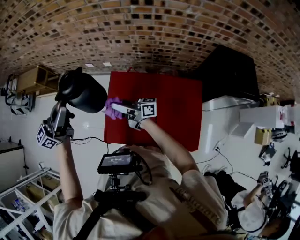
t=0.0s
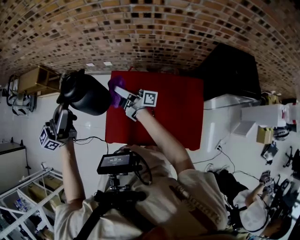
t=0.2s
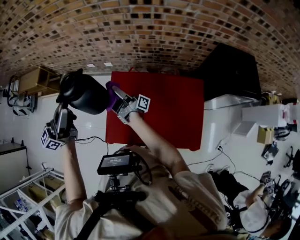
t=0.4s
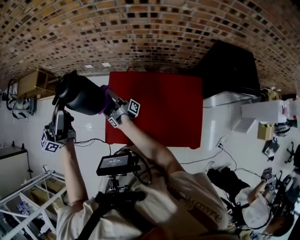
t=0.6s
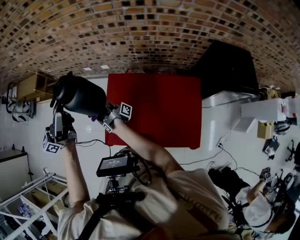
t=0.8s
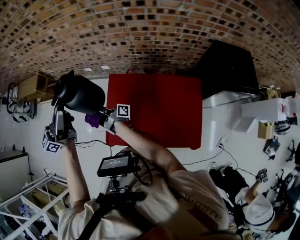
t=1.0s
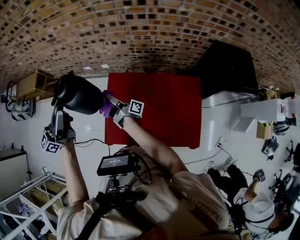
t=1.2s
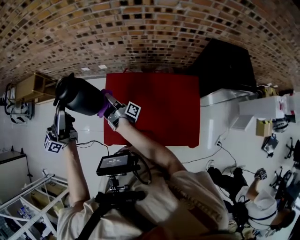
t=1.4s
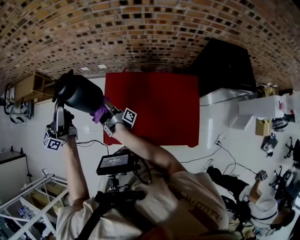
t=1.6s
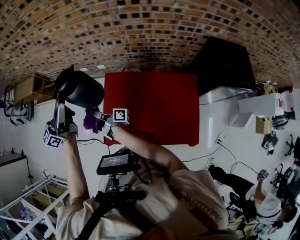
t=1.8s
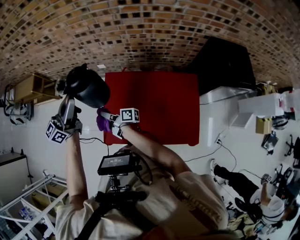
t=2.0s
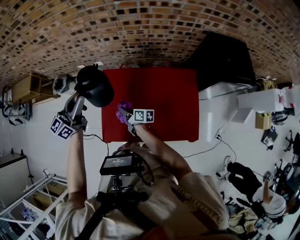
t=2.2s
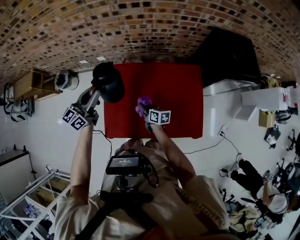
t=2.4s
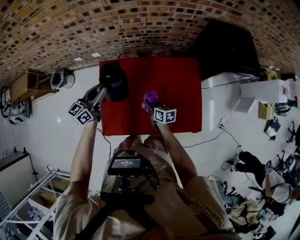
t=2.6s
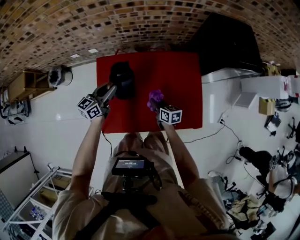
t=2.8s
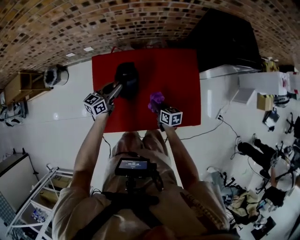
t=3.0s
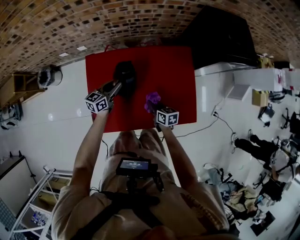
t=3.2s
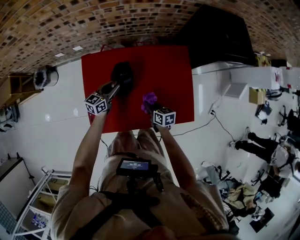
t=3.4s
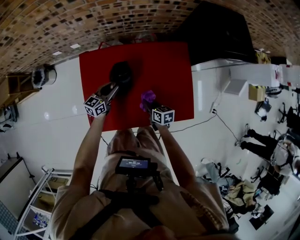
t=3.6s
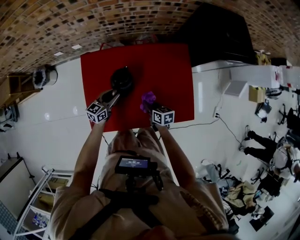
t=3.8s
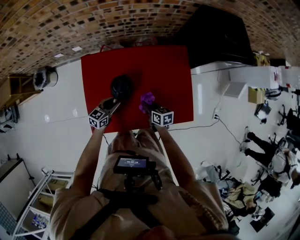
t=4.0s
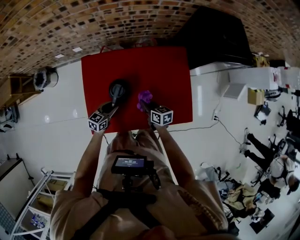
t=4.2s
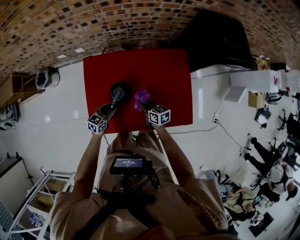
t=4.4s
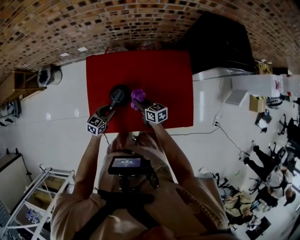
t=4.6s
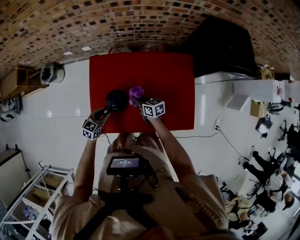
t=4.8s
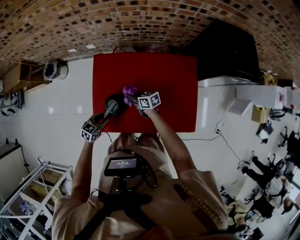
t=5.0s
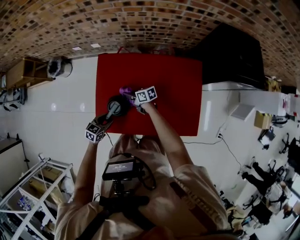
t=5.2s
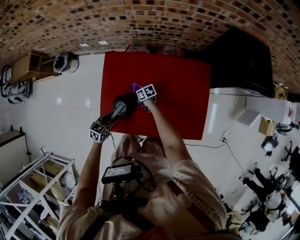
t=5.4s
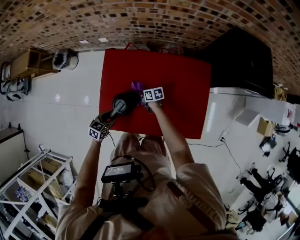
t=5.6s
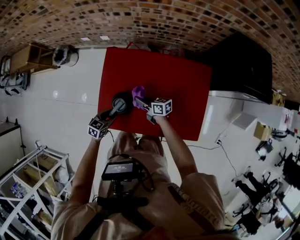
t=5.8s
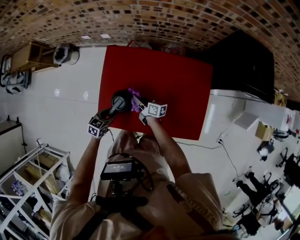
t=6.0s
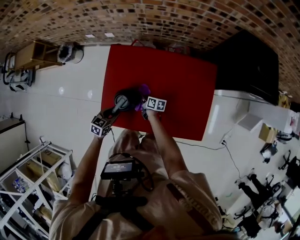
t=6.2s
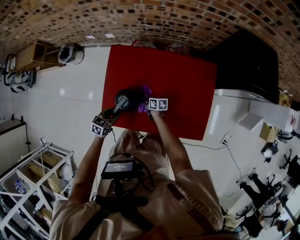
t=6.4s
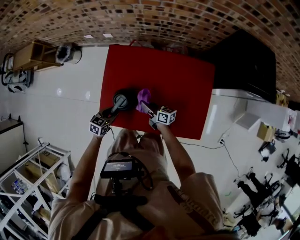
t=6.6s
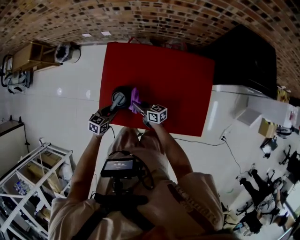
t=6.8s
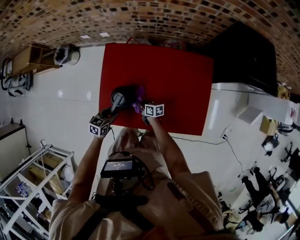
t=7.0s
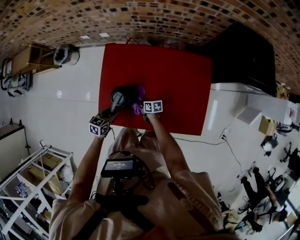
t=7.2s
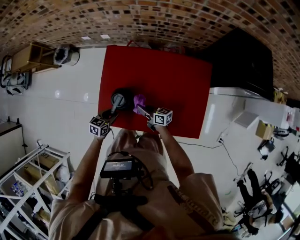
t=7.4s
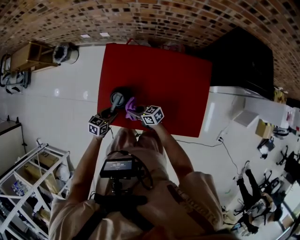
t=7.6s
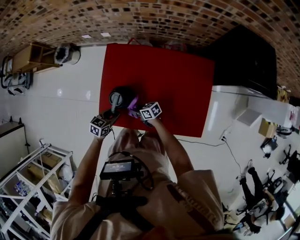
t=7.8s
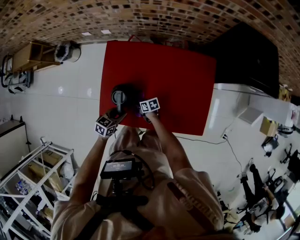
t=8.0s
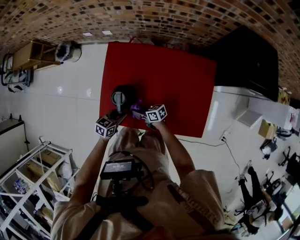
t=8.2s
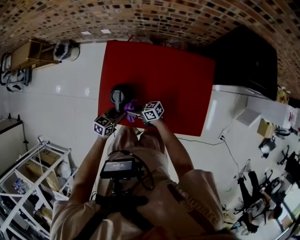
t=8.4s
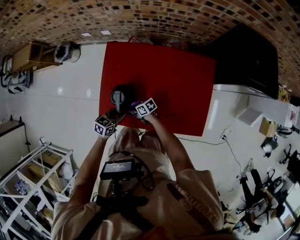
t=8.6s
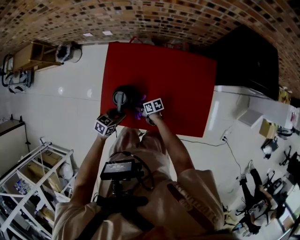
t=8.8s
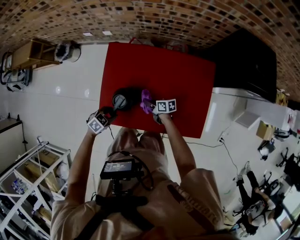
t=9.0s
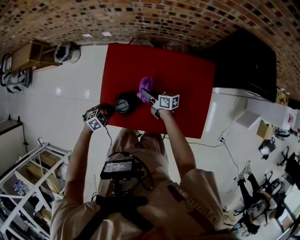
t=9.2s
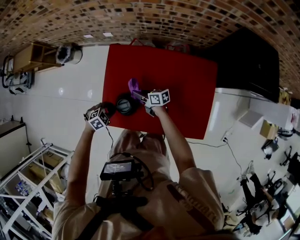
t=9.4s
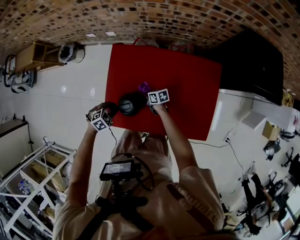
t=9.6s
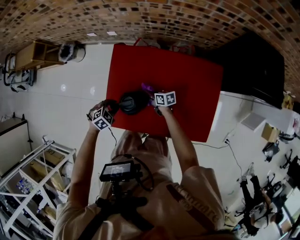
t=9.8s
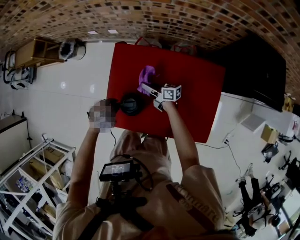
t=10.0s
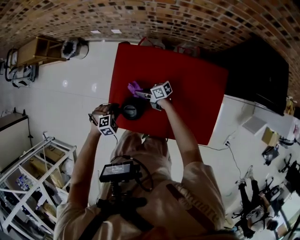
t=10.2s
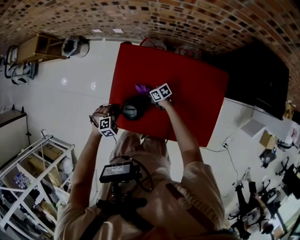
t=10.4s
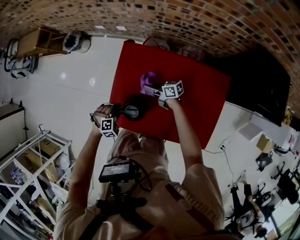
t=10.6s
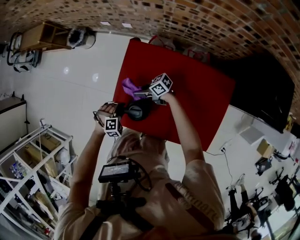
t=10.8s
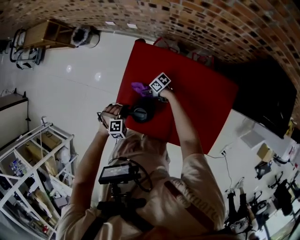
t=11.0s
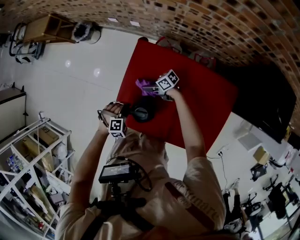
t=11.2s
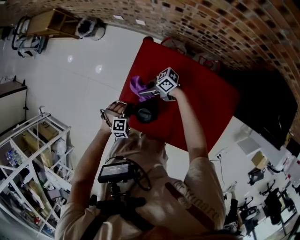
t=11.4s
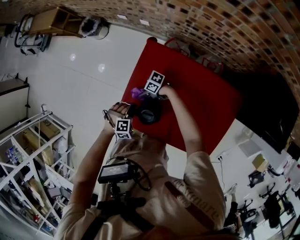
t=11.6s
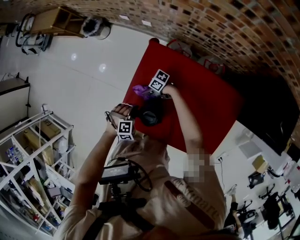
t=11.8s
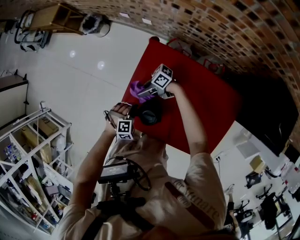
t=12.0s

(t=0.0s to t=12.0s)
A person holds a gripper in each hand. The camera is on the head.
t=0.0s - t=1.6s: The right gripper moves downward, about 5 cm, reaches about 10 cm to the left, then returns, and changes its angle by about 60 degrees.
t=1.6s - t=3.0s: The right gripper moves to the right, downward and backward, roughly 35 cm, and points its fingers some 50 degrees further downward. The left gripper goes roughly 40 cm downward and to the right, and points its fingers some 30 degrees further downward.
t=3.0s - t=4.4s: The left gripper moves backward and downward, about 15 cm.
t=4.4s - t=6.0s: The right gripper changes its angle by some 30 degrees, while the left gripper ends up approximately 10 cm from where it was.
t=6.0s - t=7.6s: The right gripper swings up and down, roughly 15 cm each way, with 3 reversals, and swivels approximately 30 degrees.
t=7.6s - t=9.0s: The left gripper swivels approximately 40 degrees, while the right gripper goes up and down, roughly 15 cm each way, reversing 3 times, and turns by about 30 degrees.
t=9.0s - t=10.4s: The left gripper moves approximately 5 cm, and changes its angle by approximately 30 degrees. The right gripper swings up and down, roughly 15 cm each way, with 3 reversals, and rotates roughly 30 degrees.
t=10.4s - t=12.0s: The right gripper moves up and down over roughly 20 cm, changing direction 4 times, and angles its fingers upward, by about 30 degrees.

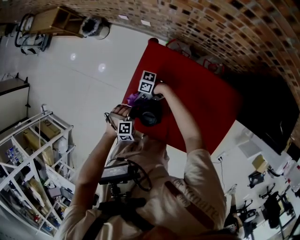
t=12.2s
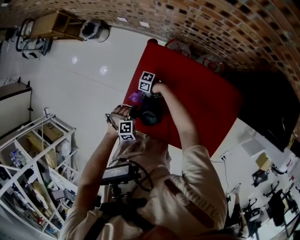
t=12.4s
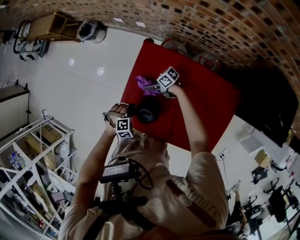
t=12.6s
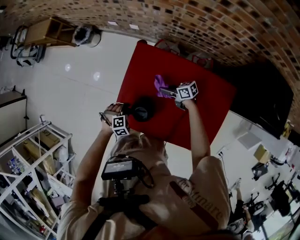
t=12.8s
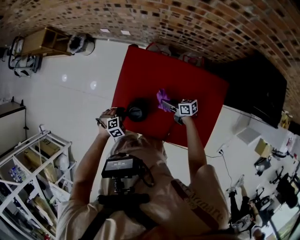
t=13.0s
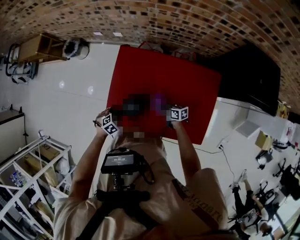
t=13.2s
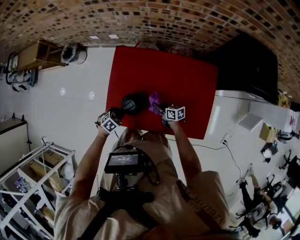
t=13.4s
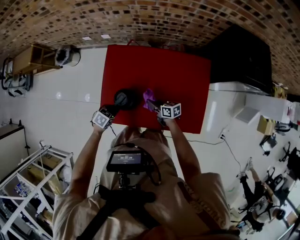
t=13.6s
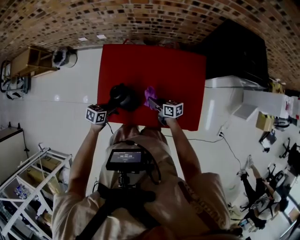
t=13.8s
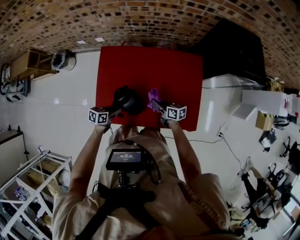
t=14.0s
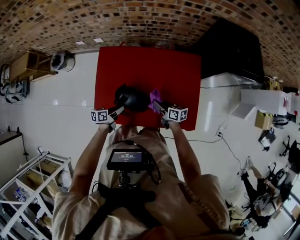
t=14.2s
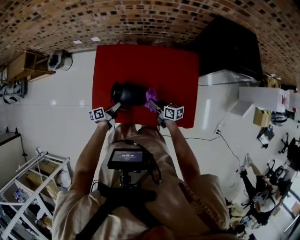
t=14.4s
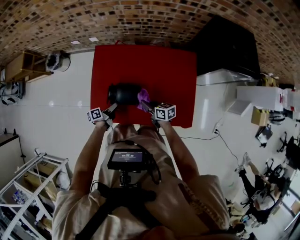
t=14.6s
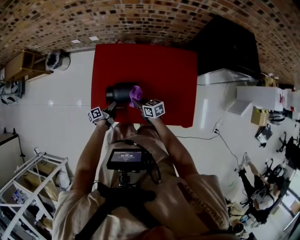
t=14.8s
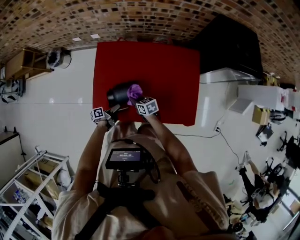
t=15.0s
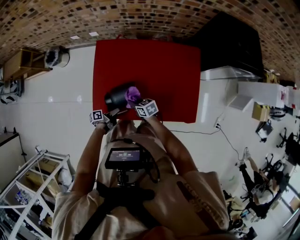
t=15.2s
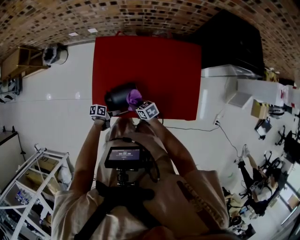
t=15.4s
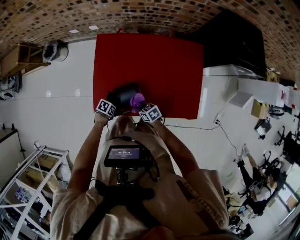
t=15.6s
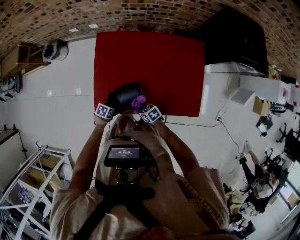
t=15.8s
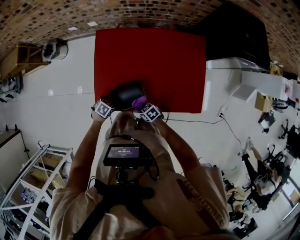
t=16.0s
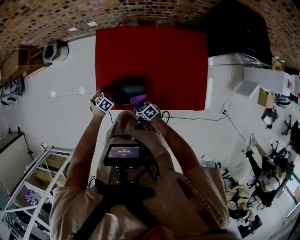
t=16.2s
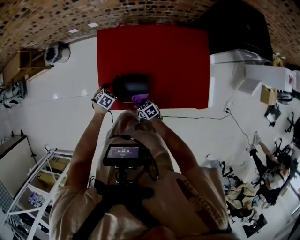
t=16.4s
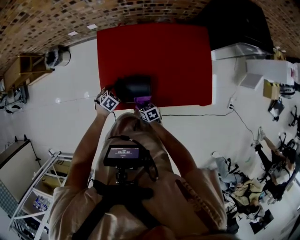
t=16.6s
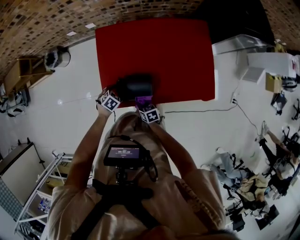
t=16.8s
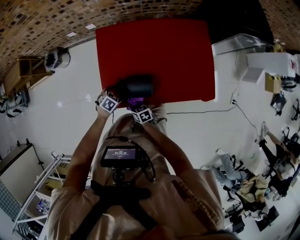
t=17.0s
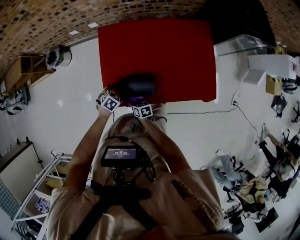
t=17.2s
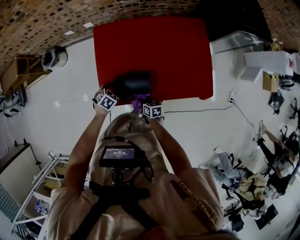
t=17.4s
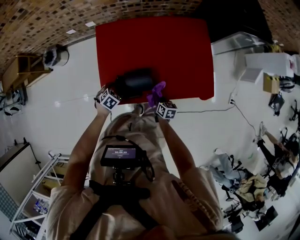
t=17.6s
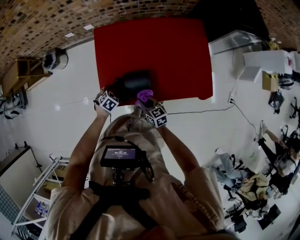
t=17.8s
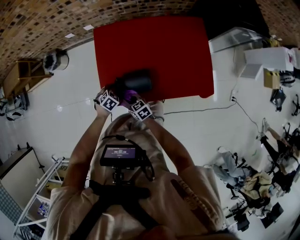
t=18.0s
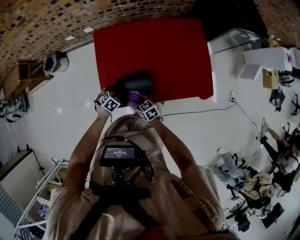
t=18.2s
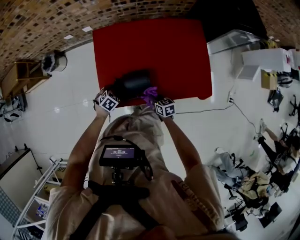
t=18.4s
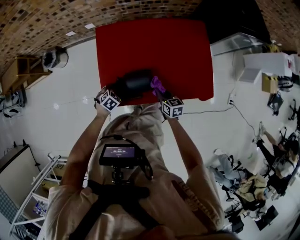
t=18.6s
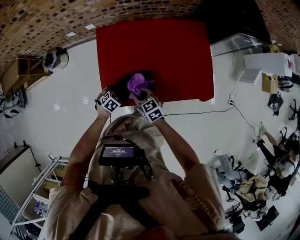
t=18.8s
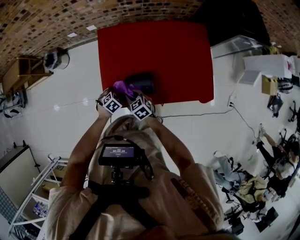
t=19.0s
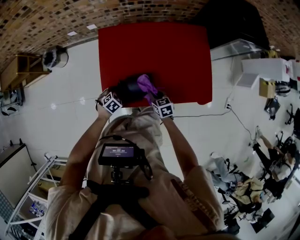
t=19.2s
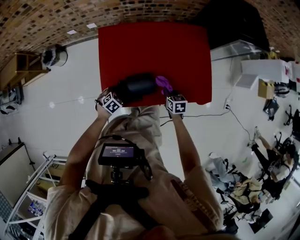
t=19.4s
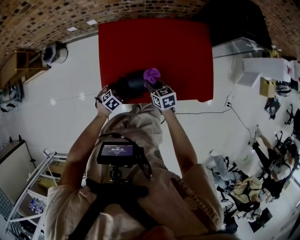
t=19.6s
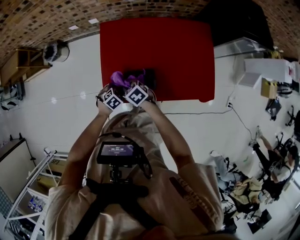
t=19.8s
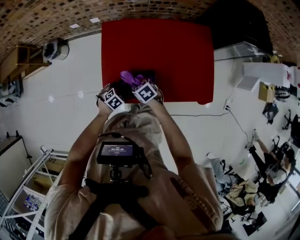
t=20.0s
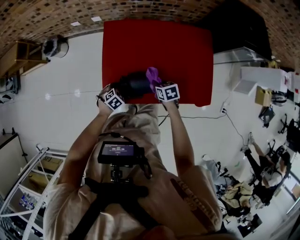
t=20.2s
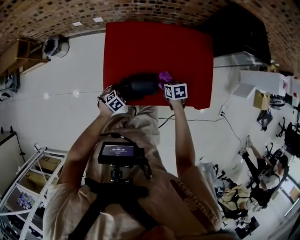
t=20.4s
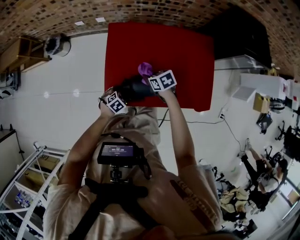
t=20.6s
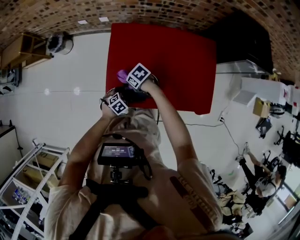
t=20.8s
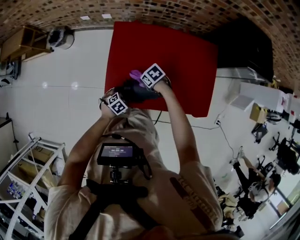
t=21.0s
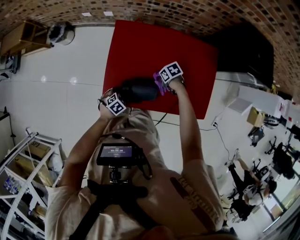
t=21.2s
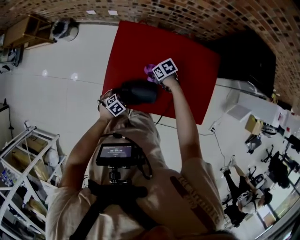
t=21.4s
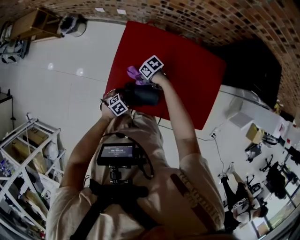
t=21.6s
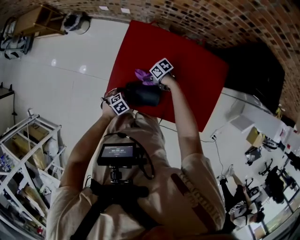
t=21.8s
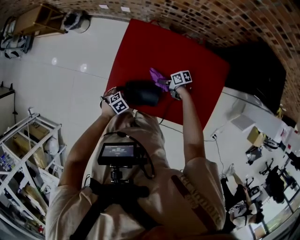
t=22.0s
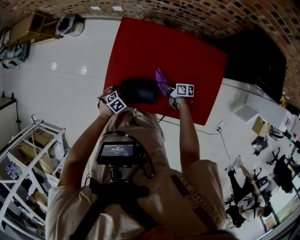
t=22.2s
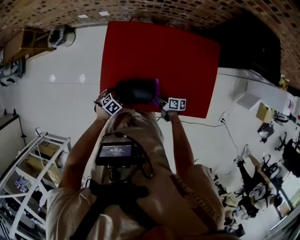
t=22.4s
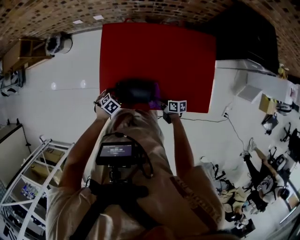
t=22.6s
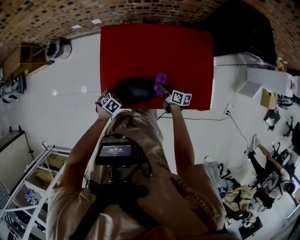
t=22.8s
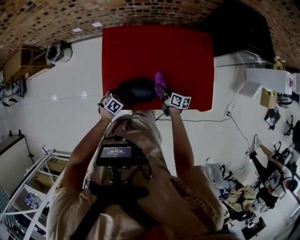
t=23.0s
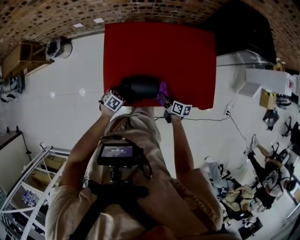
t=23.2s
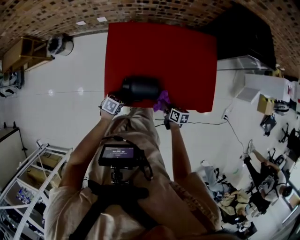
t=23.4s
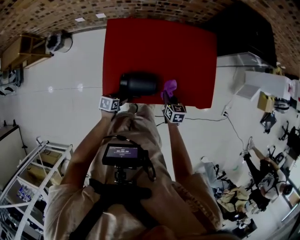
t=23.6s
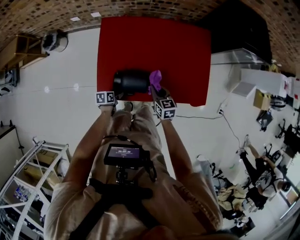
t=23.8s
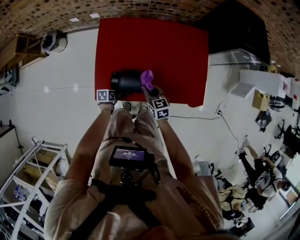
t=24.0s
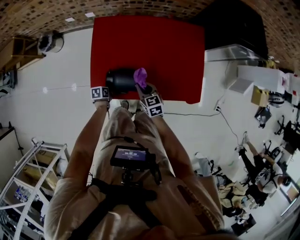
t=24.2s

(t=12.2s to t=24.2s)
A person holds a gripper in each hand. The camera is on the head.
t=12.2s - t=13.8s: The left gripper ends up approximately 5 cm from where it was, and rotates around the line of its fingers by about 60 degrees, counterclockwise from behind, while the right gripper ends up roughly 30 cm from where it was, and turns by roughly 90 degrees.
t=13.8s - t=15.2s: The left gripper shifts some 10 cm downward, and twists roughly 60 degrees counterclockwise, seen from behind; the right gripper ends up roughly 15 cm from where it was, and changes its angle by about 20 degrees.
t=15.2s - t=16.6s: The right gripper shifts by approximately 10 cm, while the left gripper shifts by approximately 10 cm, rolls clockwise, seen from behind, by about 90 degrees, and opens its fingers.
t=16.6s - t=18.2s: The right gripper shifts some 5 cm upward.
t=18.2s - t=19.8s: The right gripper moves up and down over some 15 cm, changing direction 3 times, and swivels about 30 degrees.
t=19.8s - t=21.2s: The right gripper moves up and down over approximately 10 cm, changing direction 2 times, and turns by roughly 30 degrees.
t=21.2s - t=22.6s: The right gripper moves approximately 15 cm, and changes its angle by about 50 degrees.
t=22.6s - t=24.2s: The left gripper shifts approximately 5 cm downward, and rolls counterclockwise, seen from behind, by some 60 degrees; the right gripper shifts about 15 cm upward, and rotates around the line of its fingers by some 40 degrees, counterclockwise from behind.
